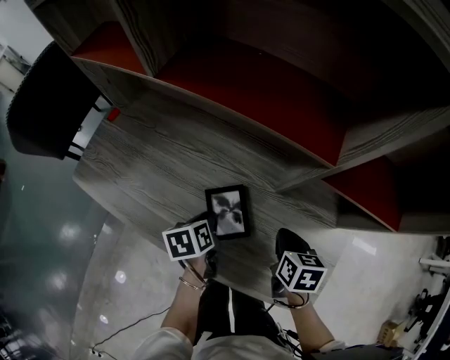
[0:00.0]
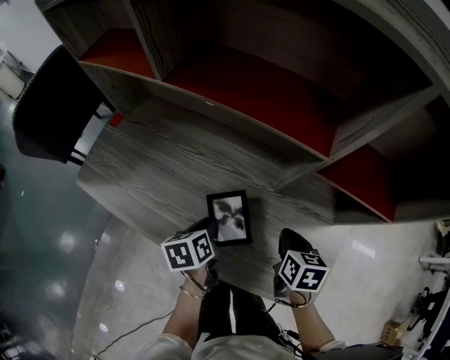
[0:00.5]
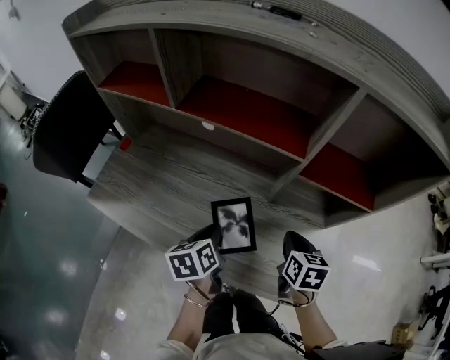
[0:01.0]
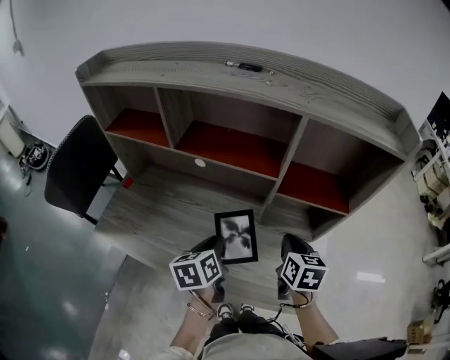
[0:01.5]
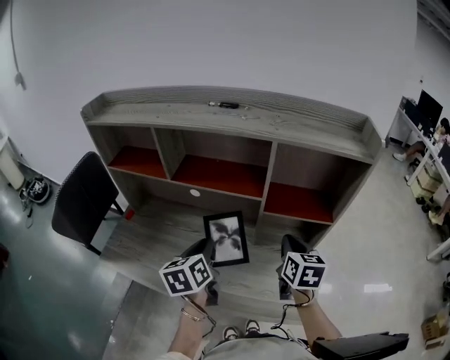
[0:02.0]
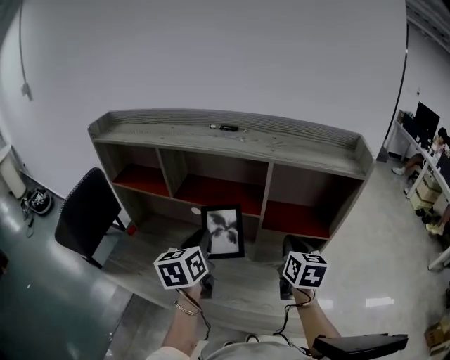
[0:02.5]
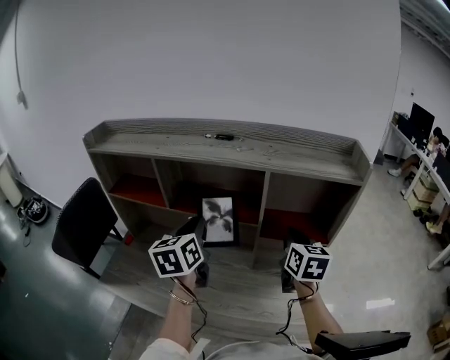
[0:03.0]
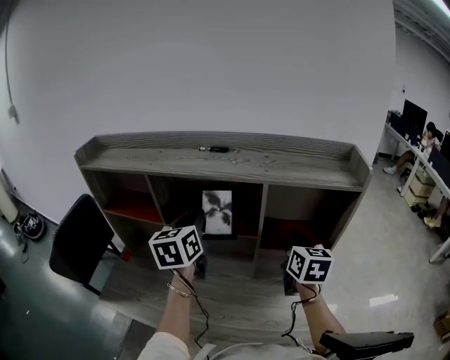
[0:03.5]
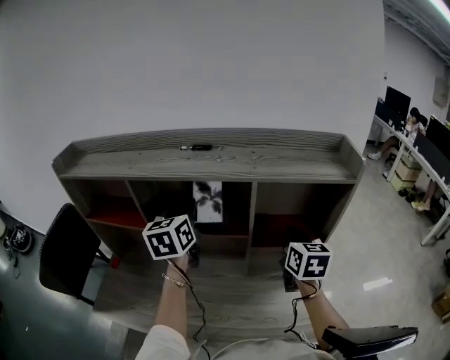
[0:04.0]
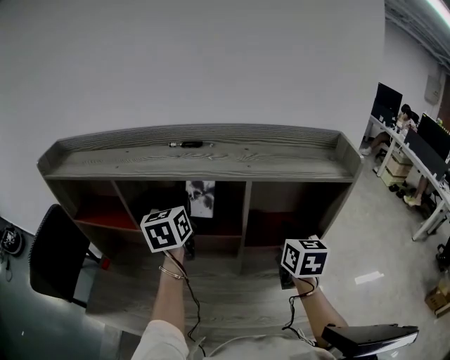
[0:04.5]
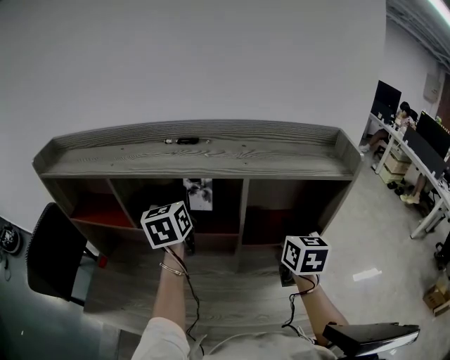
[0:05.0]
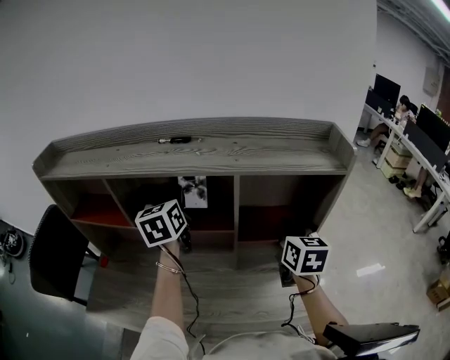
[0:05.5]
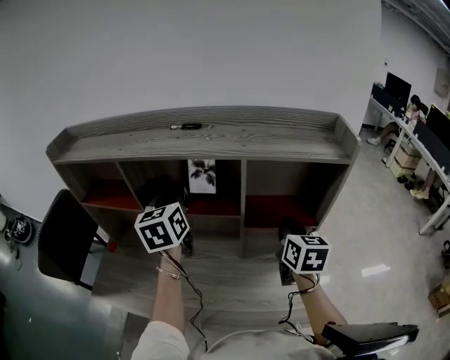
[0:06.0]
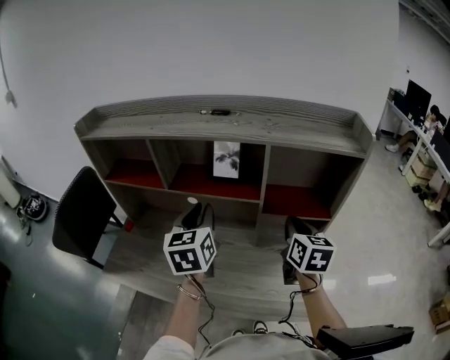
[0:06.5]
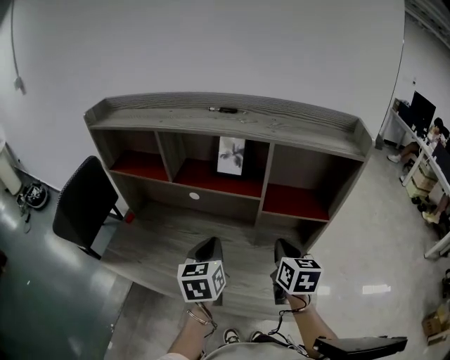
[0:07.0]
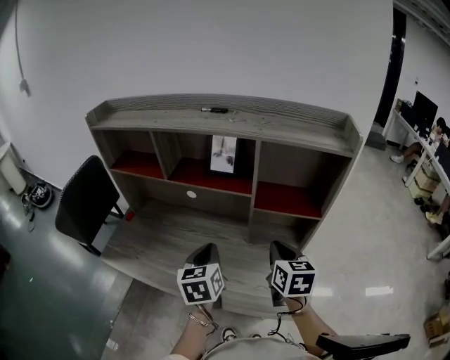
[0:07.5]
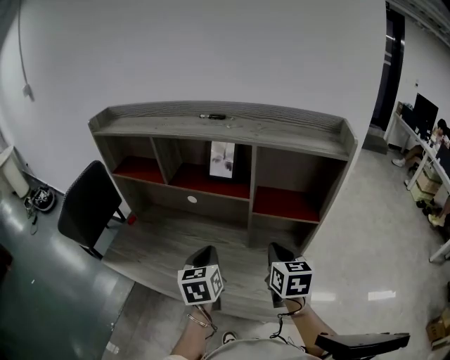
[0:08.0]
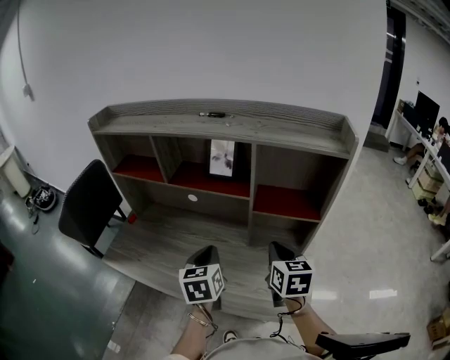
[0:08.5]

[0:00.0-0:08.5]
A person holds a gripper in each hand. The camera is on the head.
0:00.0 to 0:02.0: Both grippers move upward, about 25 cm. The right gripper turns by roughly 30 degrees. The left gripper turns by some 30 degrees.
0:02.0 to 0:04.0: The left gripper heads forward and upward, covering about 25 cm, and changes its angle by approximately 30 degrees. The right gripper goes about 10 cm forward and upward.
0:04.0 to 0:06.5: The left gripper goes some 10 cm backward. Meanwhile the right gripper is displaced backward by approximately 5 cm.
0:06.5 to 0:08.5: The right gripper goes roughly 5 cm backward. Meanwhile the left gripper travels backward and downward by approximately 15 cm.

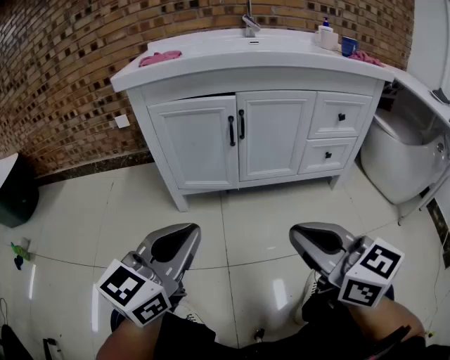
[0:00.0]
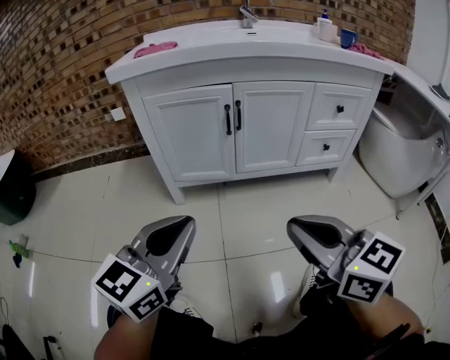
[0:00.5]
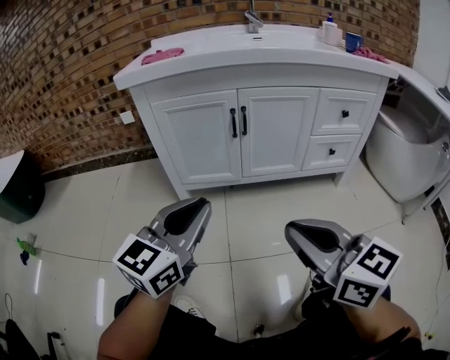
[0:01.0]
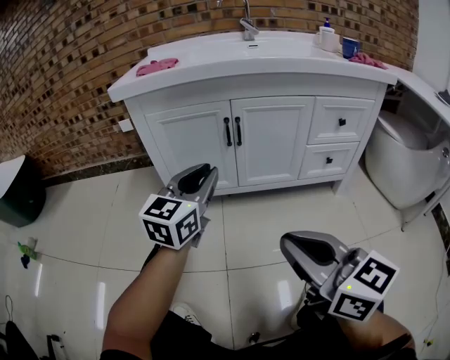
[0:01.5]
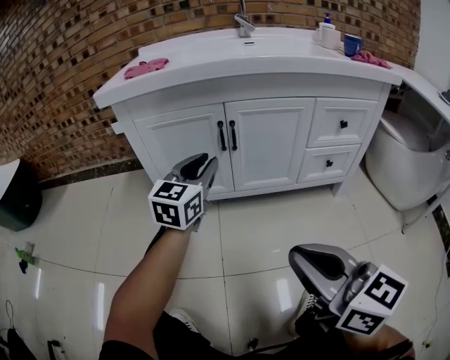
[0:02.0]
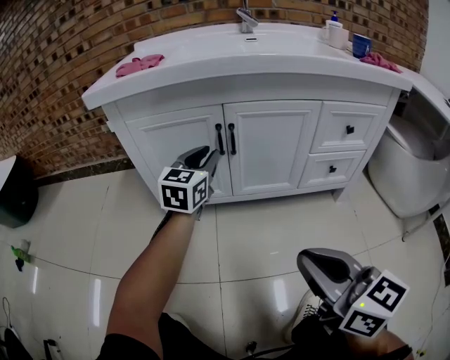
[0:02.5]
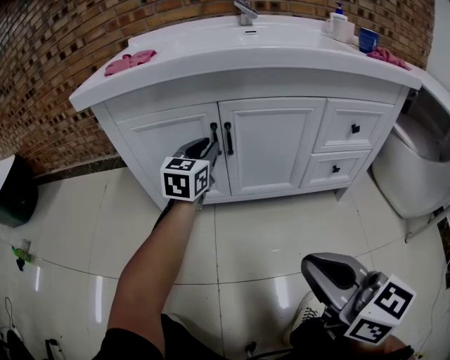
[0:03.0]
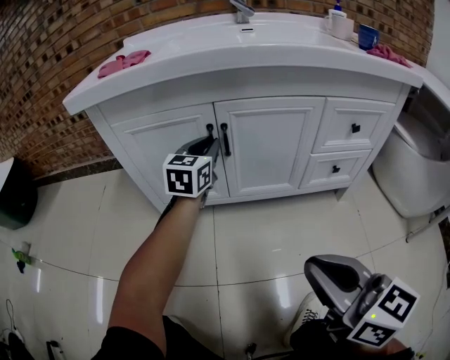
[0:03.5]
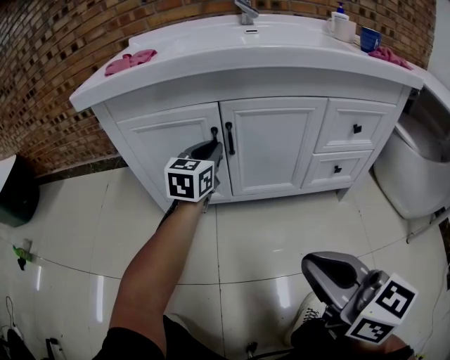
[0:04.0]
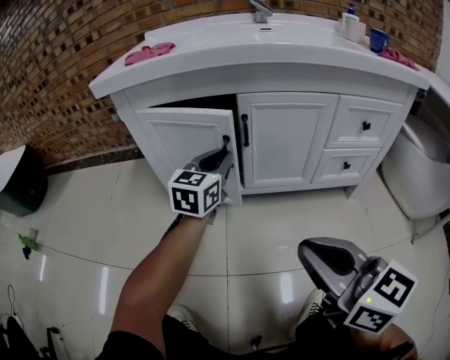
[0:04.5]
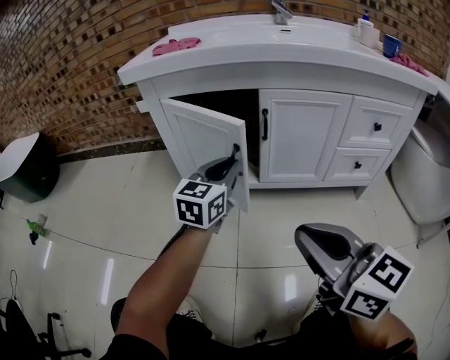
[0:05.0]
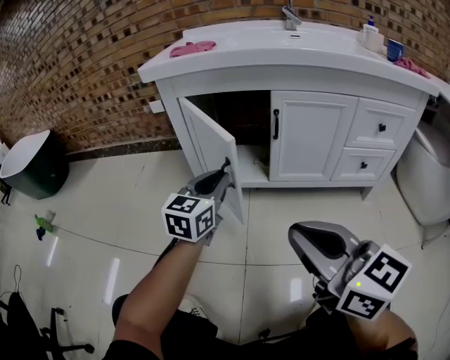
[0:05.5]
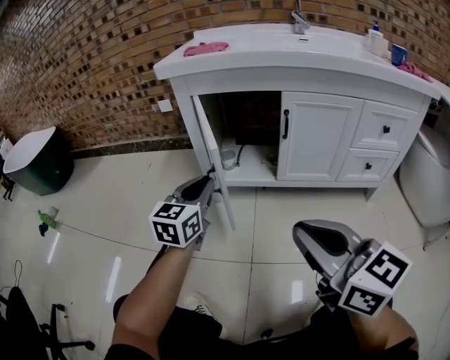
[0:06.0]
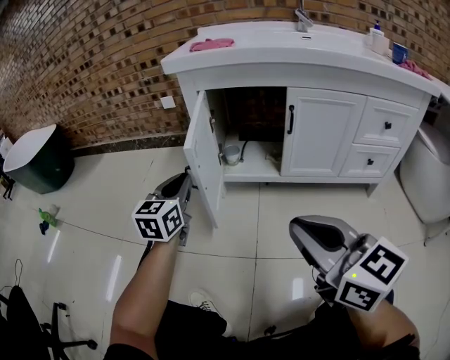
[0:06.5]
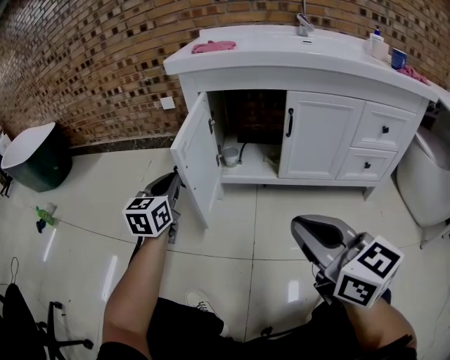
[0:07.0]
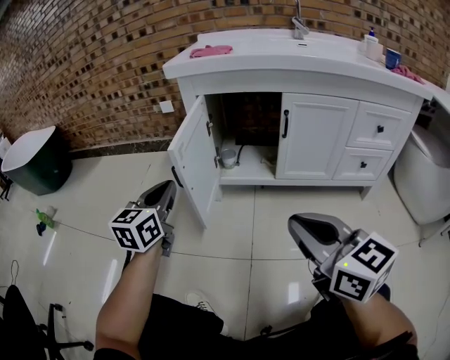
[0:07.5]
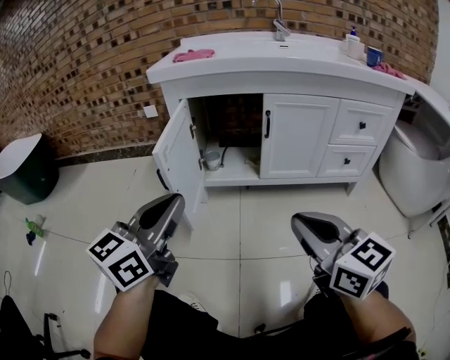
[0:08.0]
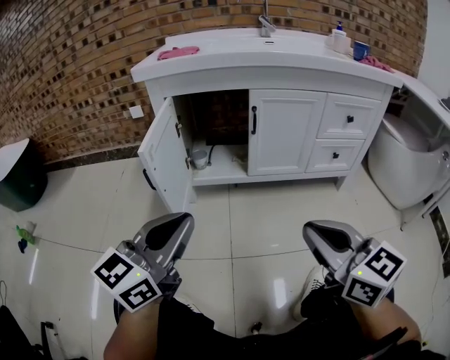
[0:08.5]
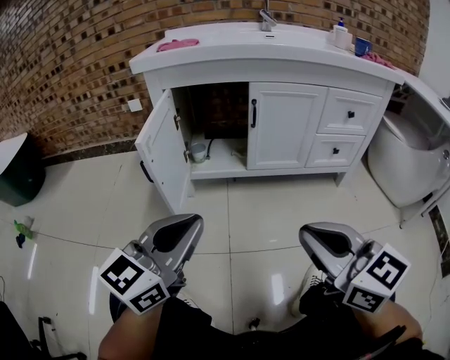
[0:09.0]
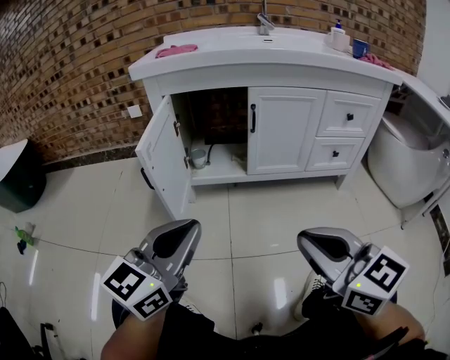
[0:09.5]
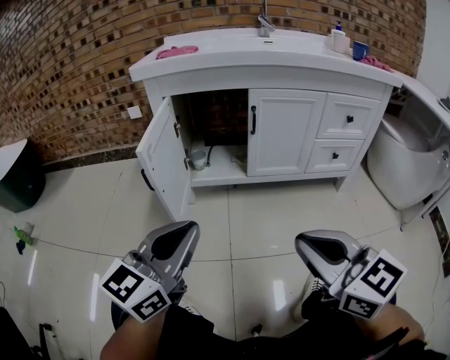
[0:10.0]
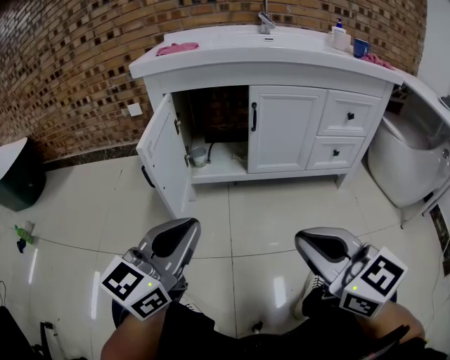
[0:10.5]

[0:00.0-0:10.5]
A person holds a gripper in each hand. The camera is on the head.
0:00.0 to 0:02.0: The left gripper heads forward, covering roughly 25 cm, and opens up.
0:02.0 to 0:04.0: The right gripper travels forward by approximately 5 cm; the left gripper travels forward by about 15 cm.
0:04.0 to 0:06.5: The left gripper goes approximately 35 cm to the left and backward. Meanwhile the right gripper moves to the left, some 15 cm.
0:06.5 to 0:08.5: The left gripper goes some 25 cm backward, to the right and upward, and swivels some 30 degrees. Meanwhile the right gripper is displaced to the right and backward by approximately 10 cm.
0:08.5 to 0:10.5: The grippers stay close to where they were, moving slightly.

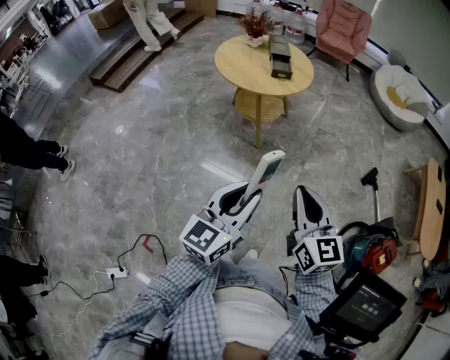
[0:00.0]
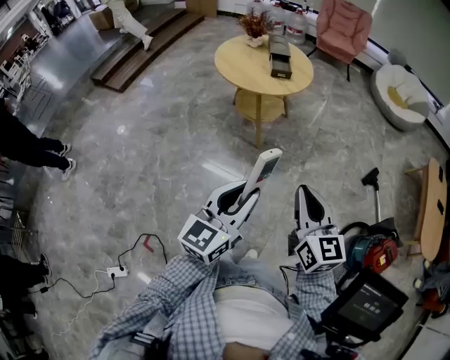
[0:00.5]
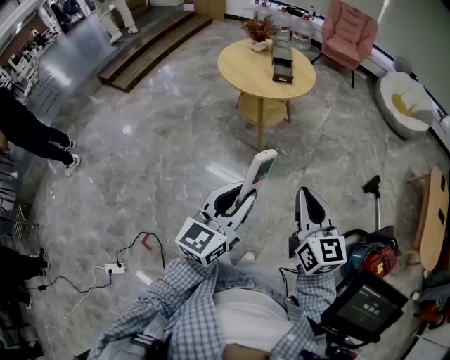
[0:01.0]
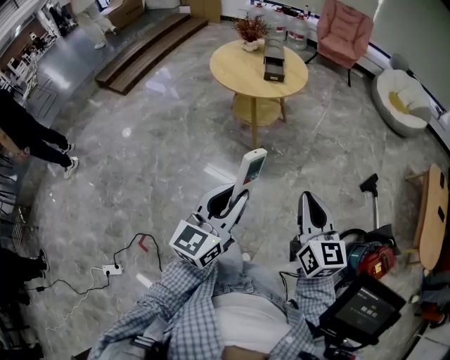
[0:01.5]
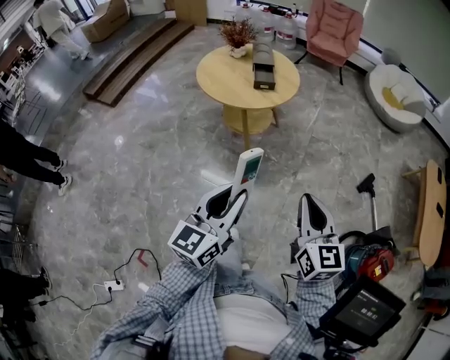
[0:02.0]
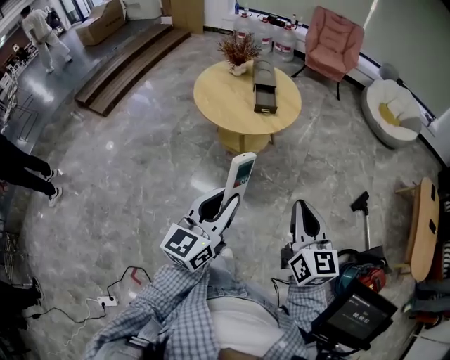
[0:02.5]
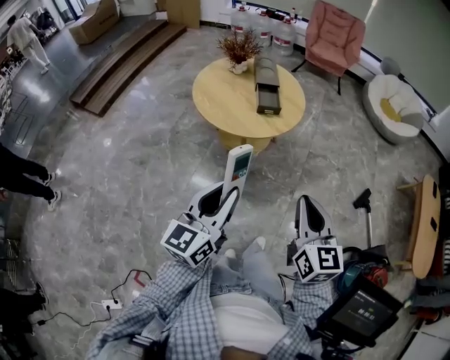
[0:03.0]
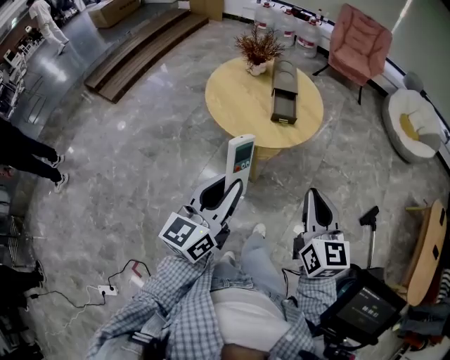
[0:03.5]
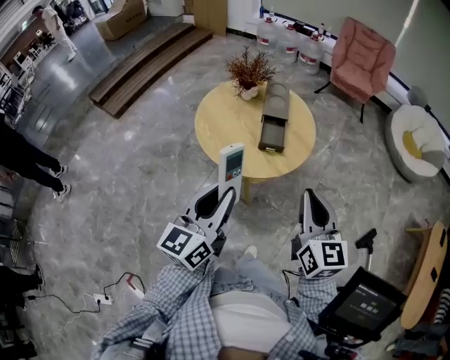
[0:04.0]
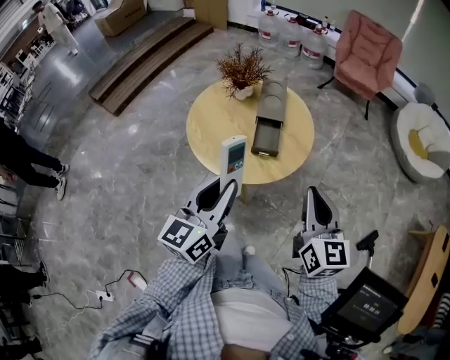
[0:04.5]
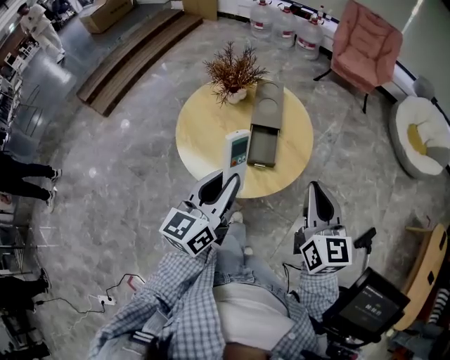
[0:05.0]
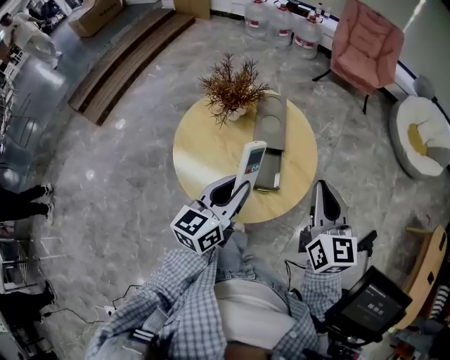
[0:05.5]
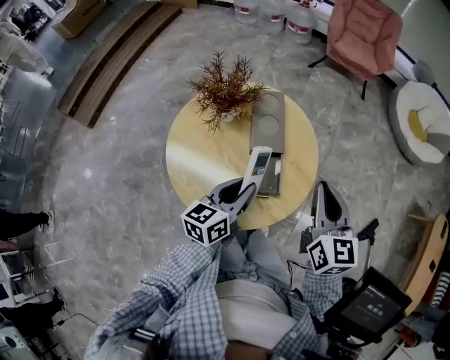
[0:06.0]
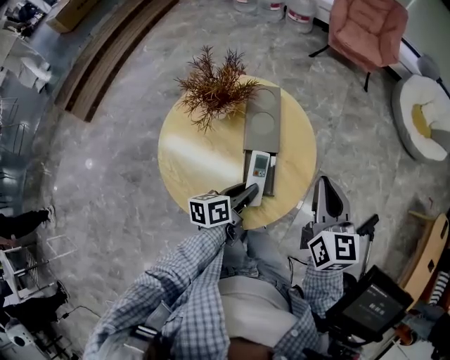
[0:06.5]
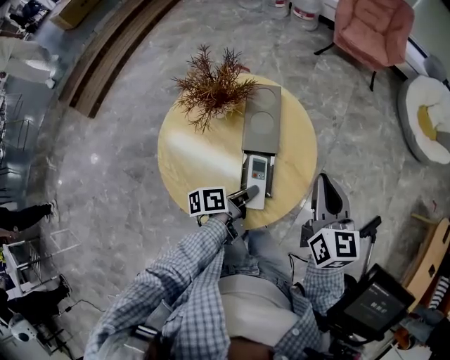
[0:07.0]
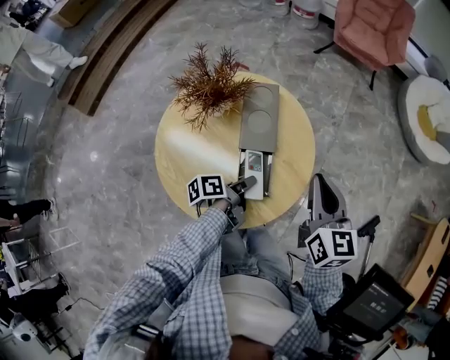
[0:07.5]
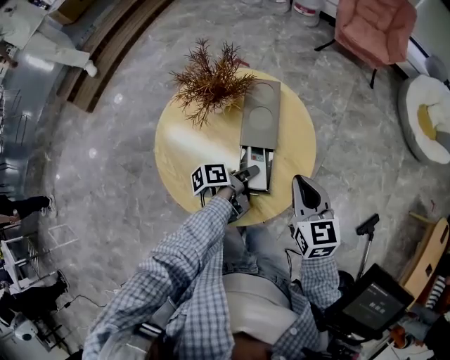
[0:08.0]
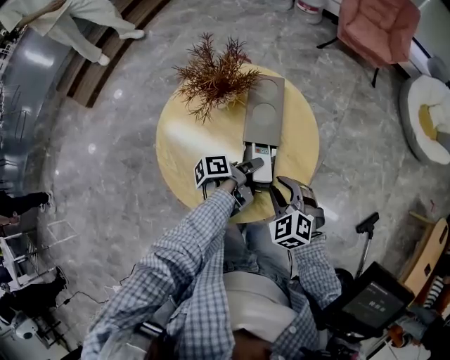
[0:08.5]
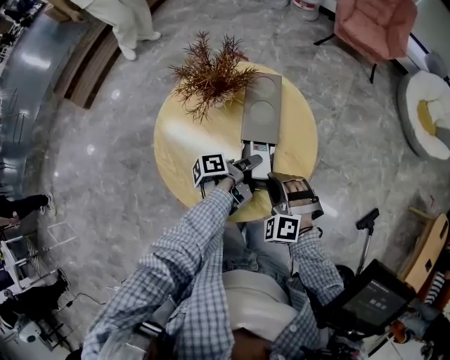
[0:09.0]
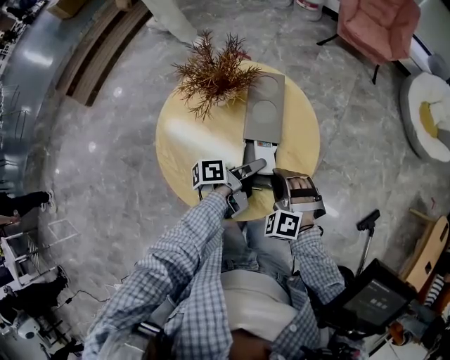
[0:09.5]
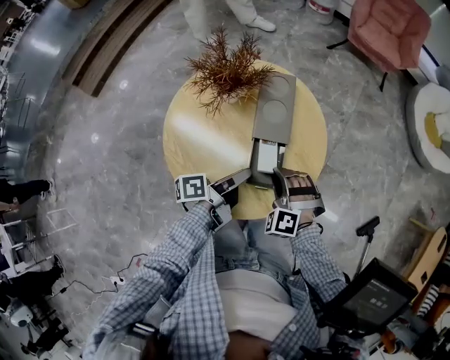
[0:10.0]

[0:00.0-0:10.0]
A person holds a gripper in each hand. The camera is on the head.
0:00.0 to 0:02.0: The right gripper goes roughly 10 cm to the right and forward. The left gripper goes roughly 10 cm forward.
0:02.0 to 0:04.0: The two grippers go approximately 35 cm forward.
0:04.0 to 0:06.0: The left gripper moves forward and downward, roughly 30 cm, and swivels roughly 30 degrees; the right gripper is displaced forward by about 25 cm.
0:06.0 to 0:08.0: The right gripper heads downward, covering approximately 10 cm, and changes its angle by some 20 degrees, while the left gripper is displaced downward and forward by about 15 cm, and twists some 60 degrees counterclockwise, seen from behind.
0:08.0 to 0:10.0: The left gripper moves upward, approximately 5 cm, and opens its fingers. The right gripper travels downward and to the left by roughly 15 cm, and rolls counterclockwise, seen from behind, by about 70 degrees.
